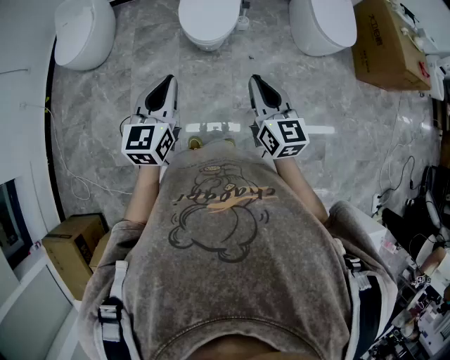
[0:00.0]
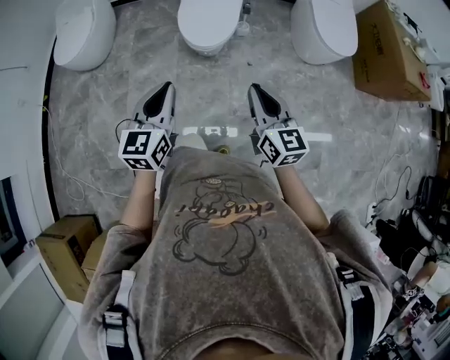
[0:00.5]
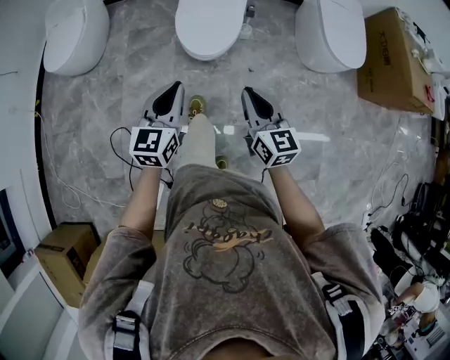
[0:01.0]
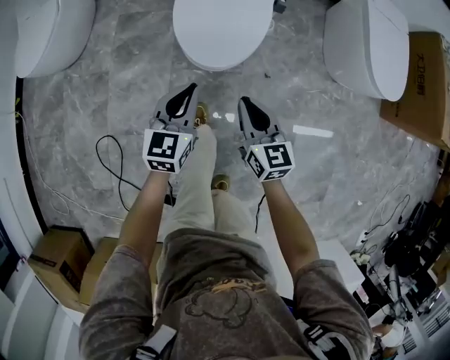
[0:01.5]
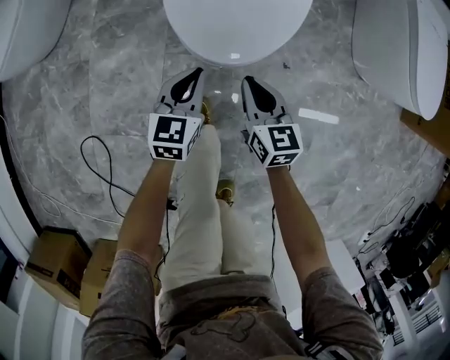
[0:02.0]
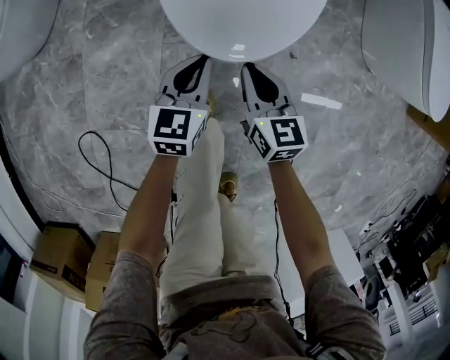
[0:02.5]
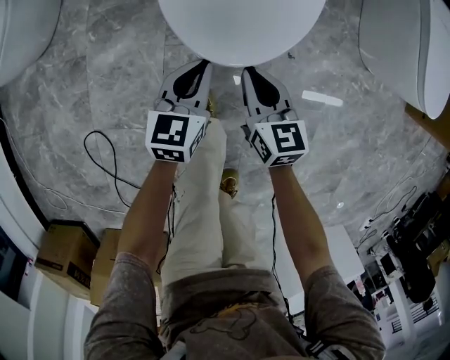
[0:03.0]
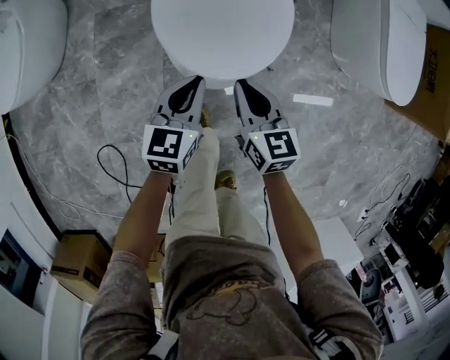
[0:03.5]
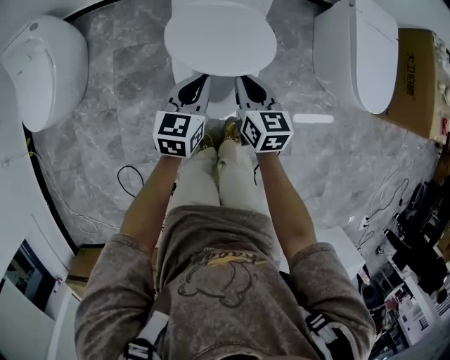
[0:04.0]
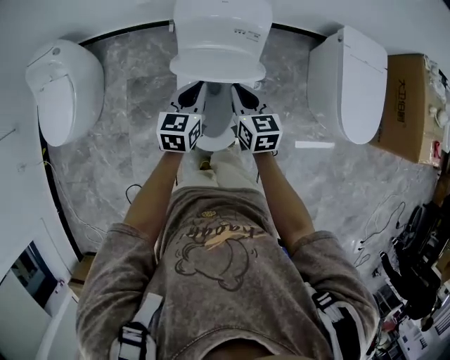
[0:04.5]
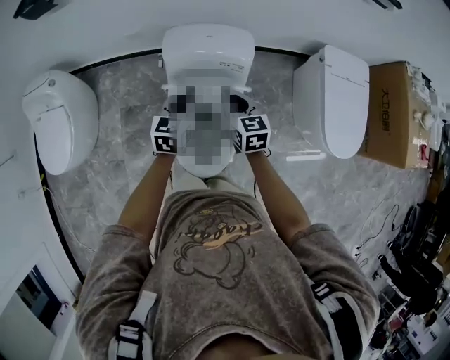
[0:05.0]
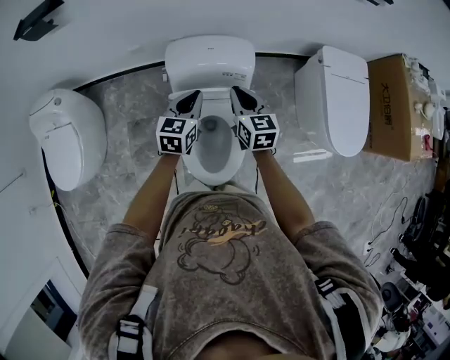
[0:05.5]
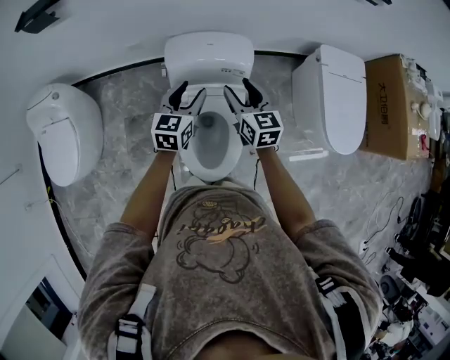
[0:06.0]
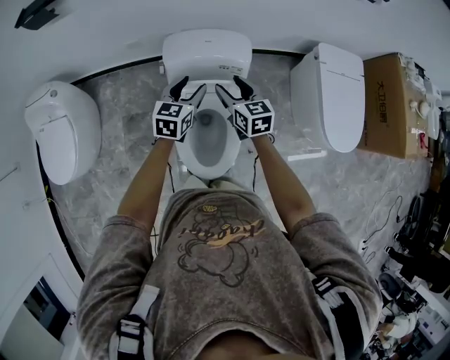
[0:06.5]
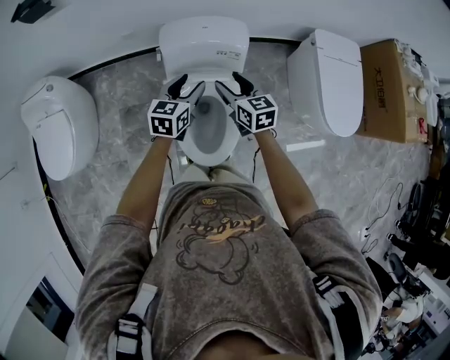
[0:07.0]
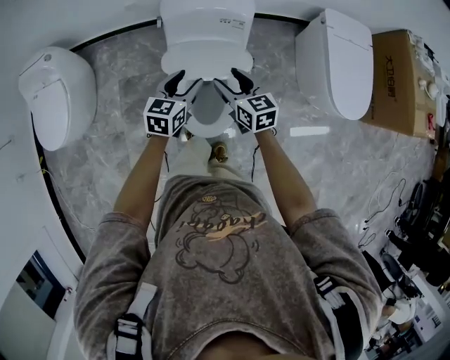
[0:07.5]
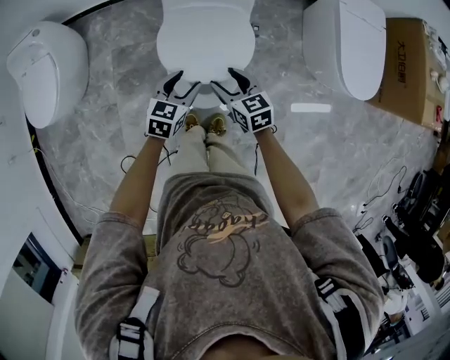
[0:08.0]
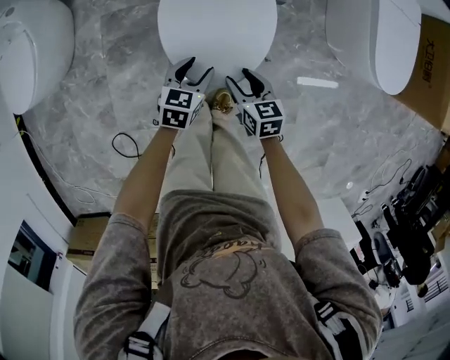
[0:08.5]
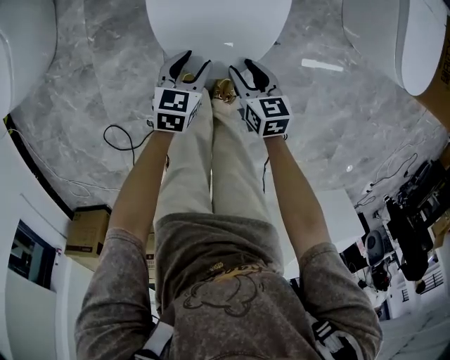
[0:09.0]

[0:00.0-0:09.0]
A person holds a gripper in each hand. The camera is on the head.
0:00.0 to 0:02.0: The two grippers go approximately 70 cm downward and forward. The right gripper turns by approximately 20 degrees.
0:02.0 to 0:04.5: Both grippers move upward and forward, some 50 cm.
0:04.5 to 0:07.0: The grippers both shift forward by roughly 10 cm. The right gripper opens. The left gripper opens up.
0:07.0 to 0:09.0: Both grippers move downward and backward, roughly 50 cm.

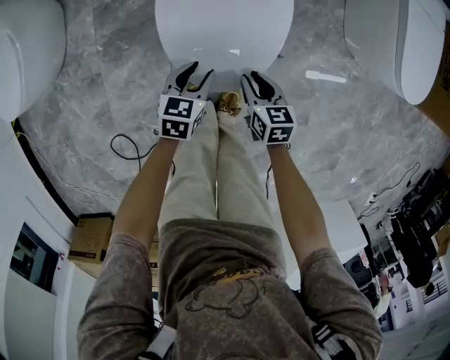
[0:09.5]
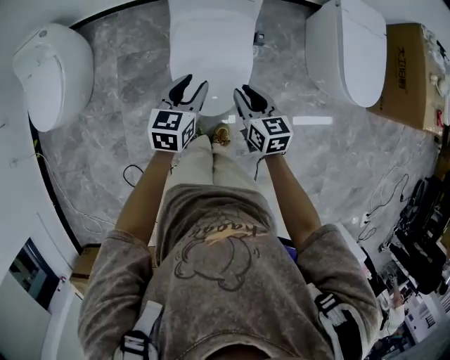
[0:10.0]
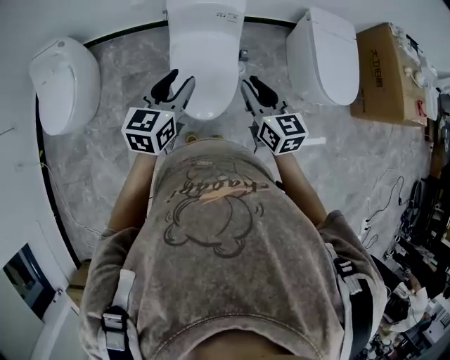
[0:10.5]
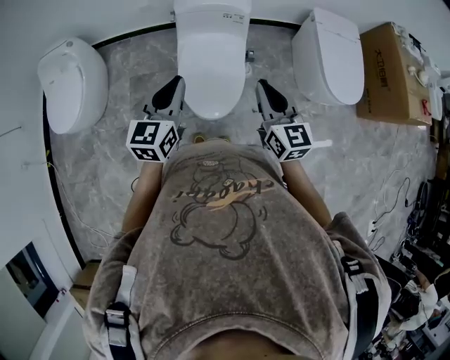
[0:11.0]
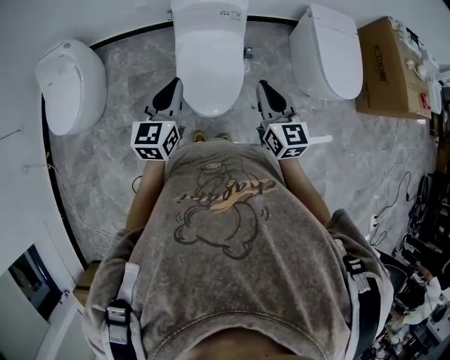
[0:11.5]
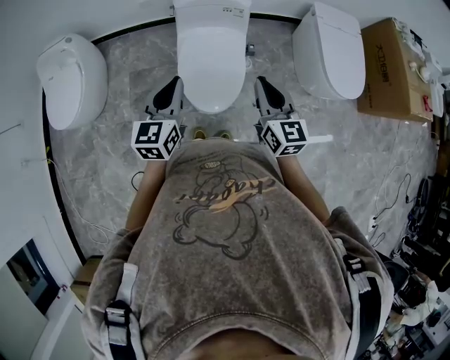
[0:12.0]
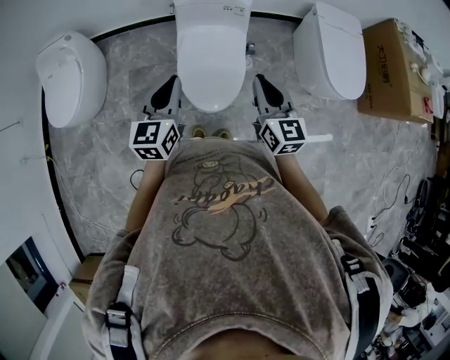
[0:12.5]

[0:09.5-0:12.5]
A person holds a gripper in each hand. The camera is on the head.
0:09.5 to 0:11.0: Both grippers travel together upward, about 50 cm. The right gripper tips its fingers upward by about 40 degrees. The left gripper angles its fingers upward, by approximately 30 degrees, and closes up.
0:11.0 to 0:12.5: The grippers make only small movements.

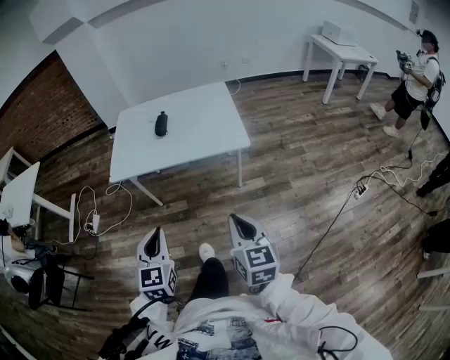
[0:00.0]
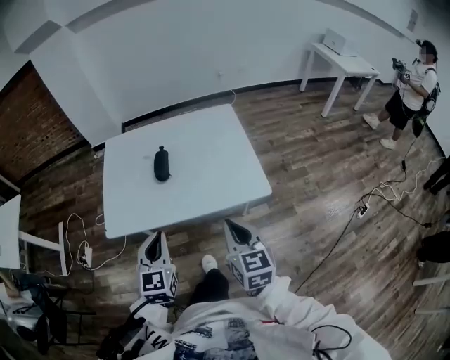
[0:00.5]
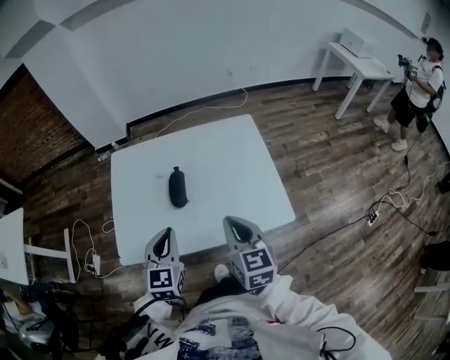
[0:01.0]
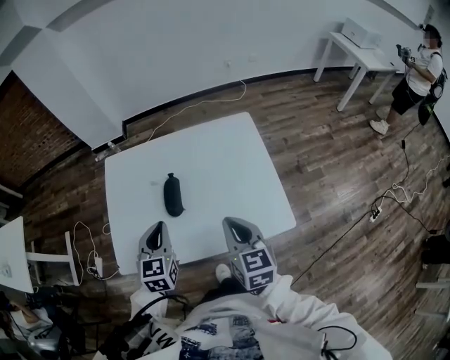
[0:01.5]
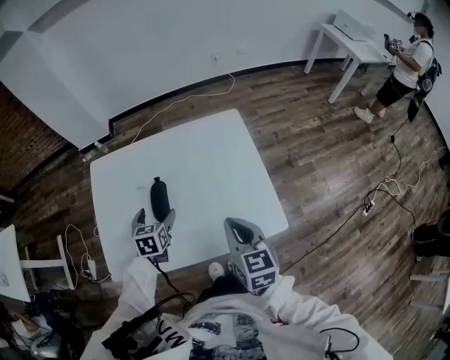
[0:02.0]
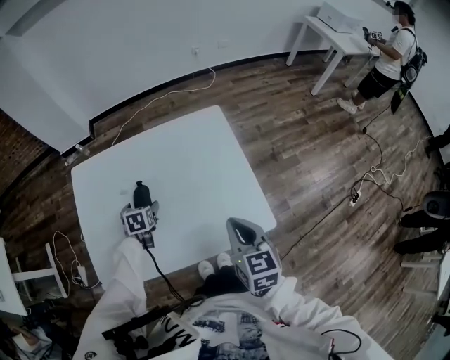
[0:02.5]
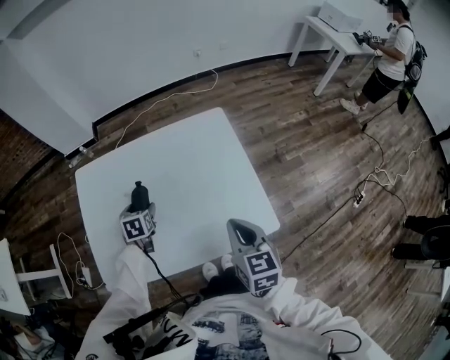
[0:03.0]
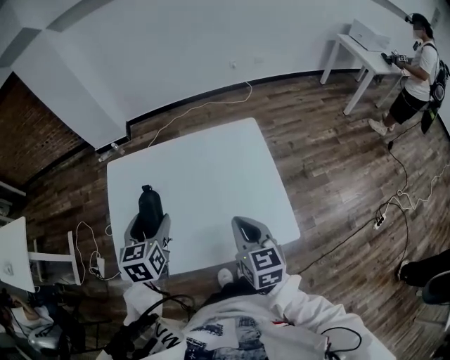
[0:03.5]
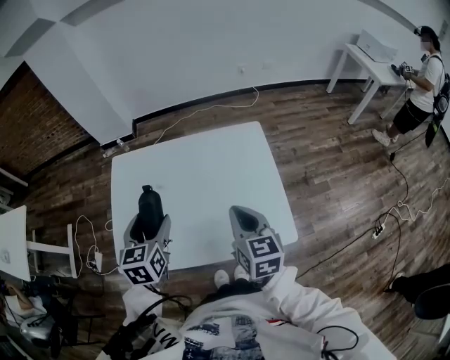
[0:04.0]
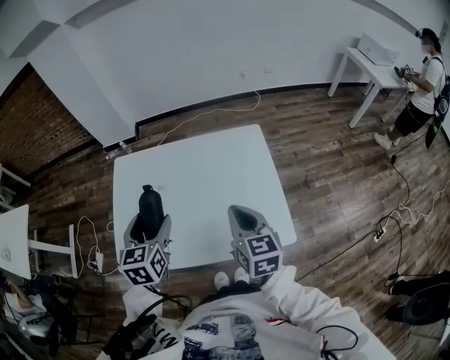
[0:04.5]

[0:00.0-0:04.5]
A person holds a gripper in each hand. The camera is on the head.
0:00.0 to 0:02.0: The pair of grippers is taken forward, approximately 50 cm. The left gripper changes its angle by roughly 30 degrees, and opens.
0:02.0 to 0:04.5: The right gripper ends up approximately 5 cm from where it was. The left gripper moves upward, roughly 20 cm.

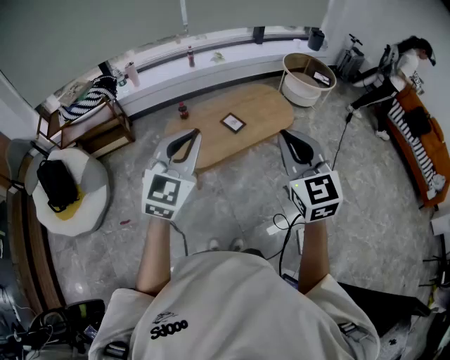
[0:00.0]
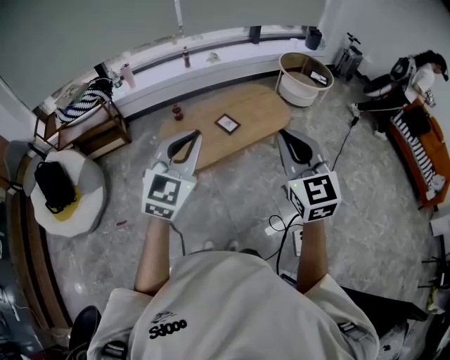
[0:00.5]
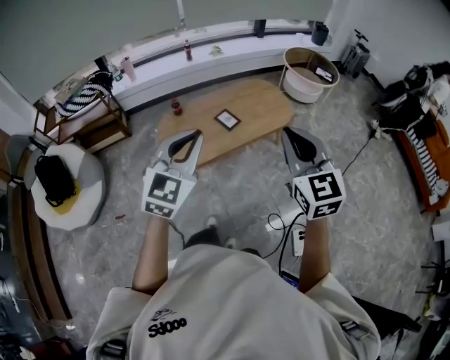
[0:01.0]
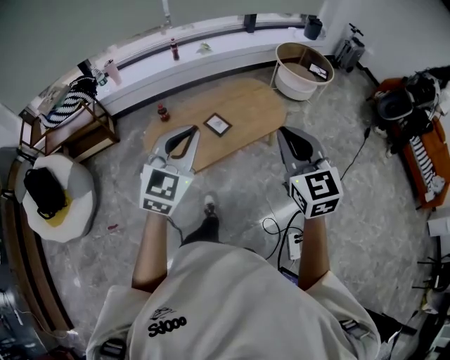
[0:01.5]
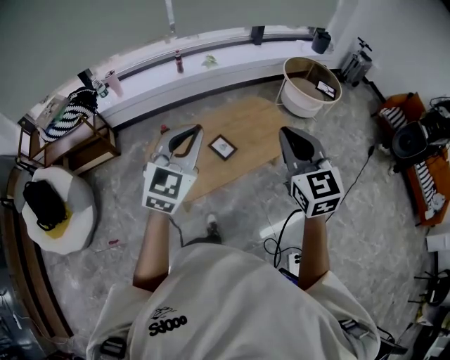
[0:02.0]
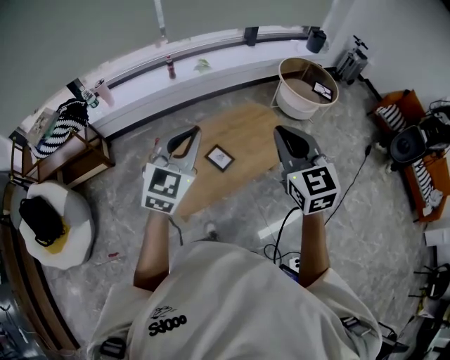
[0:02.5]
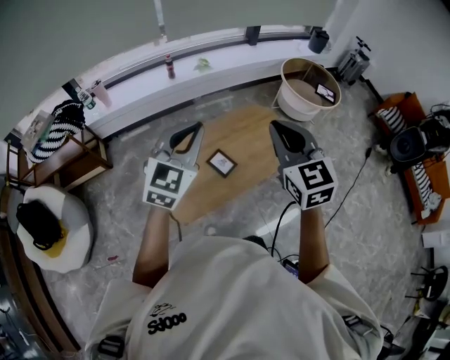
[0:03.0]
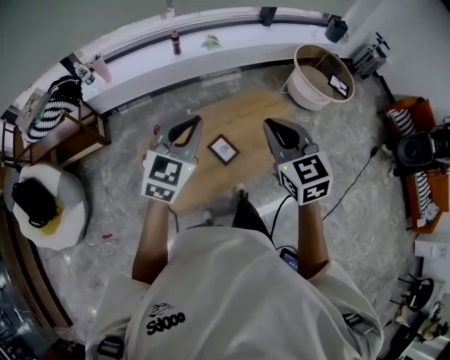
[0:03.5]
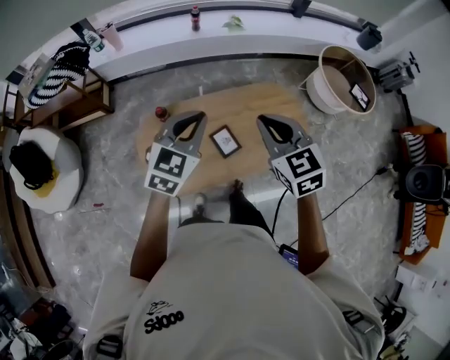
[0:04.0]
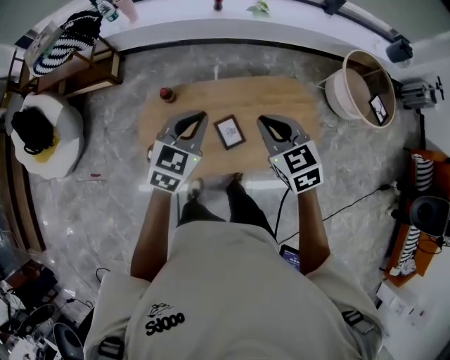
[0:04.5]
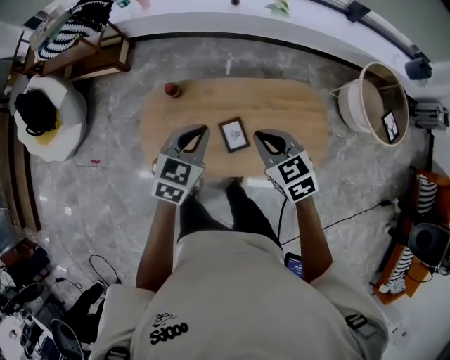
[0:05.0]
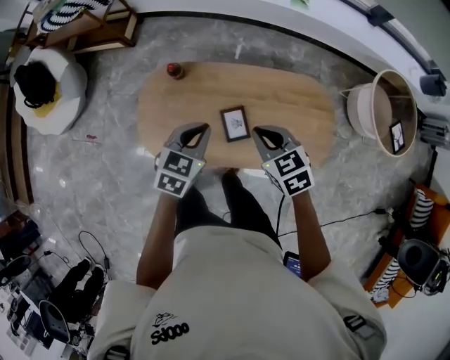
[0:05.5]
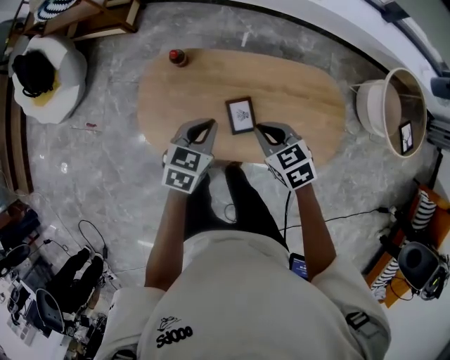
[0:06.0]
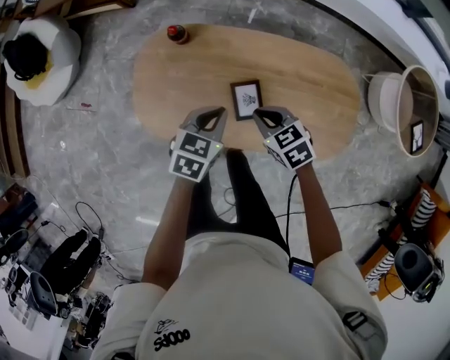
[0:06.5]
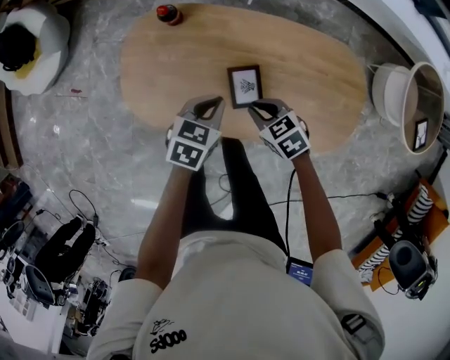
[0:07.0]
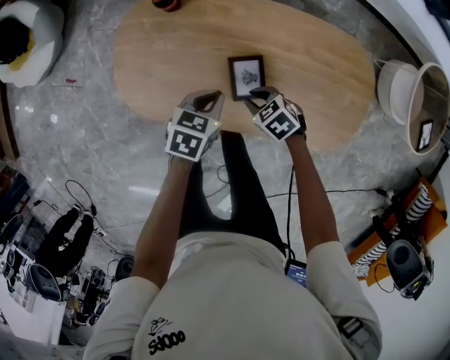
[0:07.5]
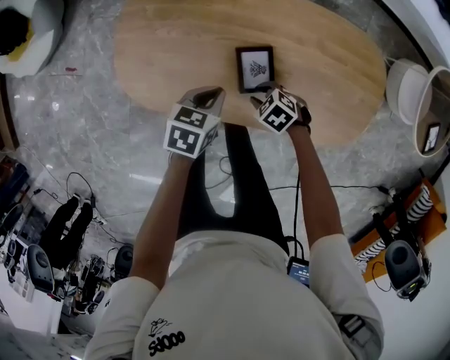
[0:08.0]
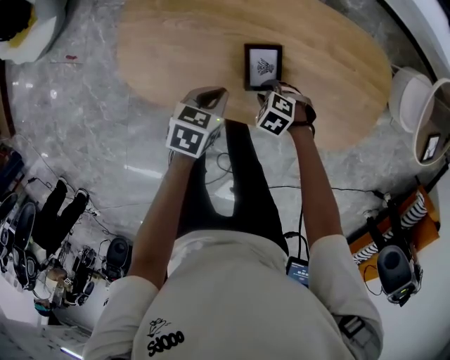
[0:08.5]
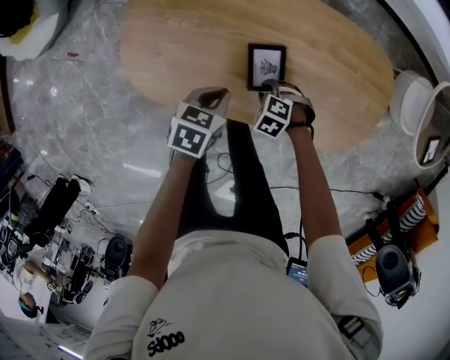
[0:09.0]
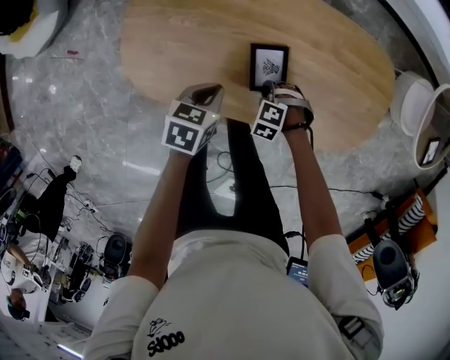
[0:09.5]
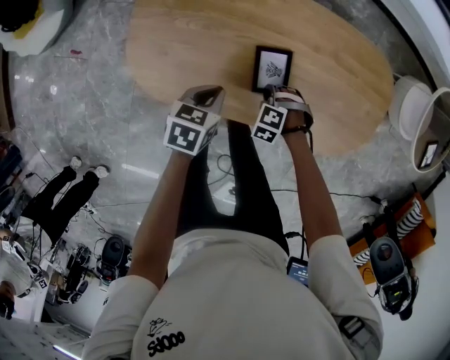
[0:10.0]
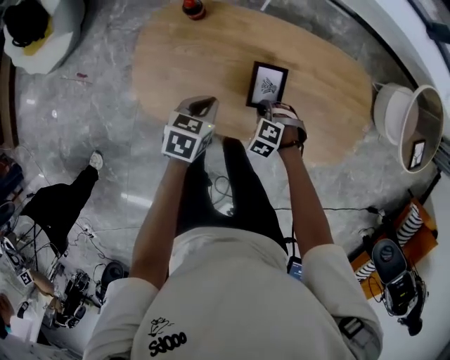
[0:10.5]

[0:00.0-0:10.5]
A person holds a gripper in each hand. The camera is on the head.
0:00.0 to 0:02.0: The grippers both shift forward by some 30 cm.
0:02.0 to 0:04.0: The two grippers go some 30 cm forward and downward. The left gripper turns by about 20 degrees. Meanwhile the right gripper rotates about 30 degrees.
0:04.0 to 0:06.5: Both grippers move downward, roughly 35 cm. The right gripper changes its angle by about 50 degrees. Meanwhile the left gripper rotates about 40 degrees.
0:06.5 to 0:08.5: The left gripper goes roughly 15 cm downward. The right gripper goes about 25 cm downward, changes its angle by some 40 degrees, and opens.
0:08.5 to 0:10.5: The two grippers go about 5 cm upward.
